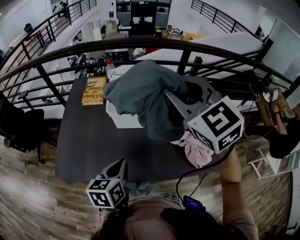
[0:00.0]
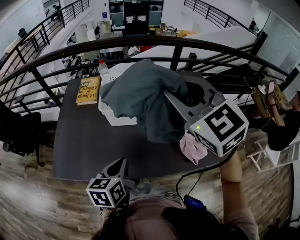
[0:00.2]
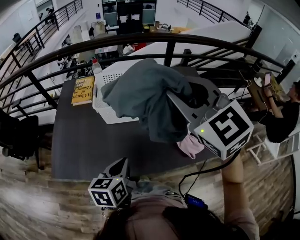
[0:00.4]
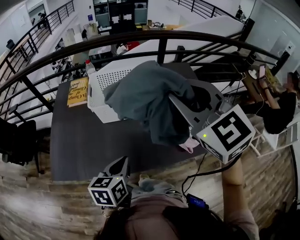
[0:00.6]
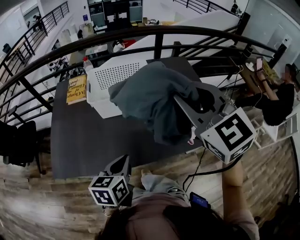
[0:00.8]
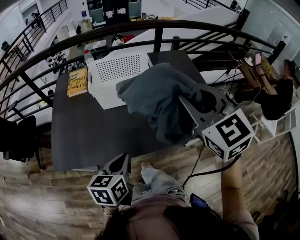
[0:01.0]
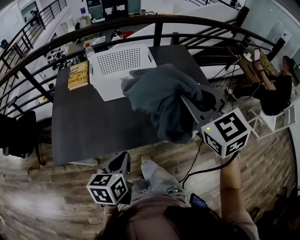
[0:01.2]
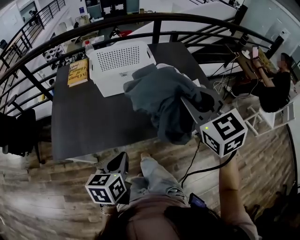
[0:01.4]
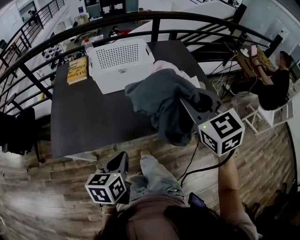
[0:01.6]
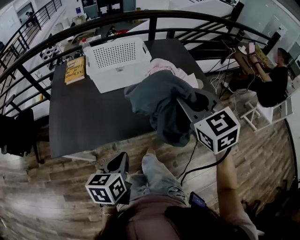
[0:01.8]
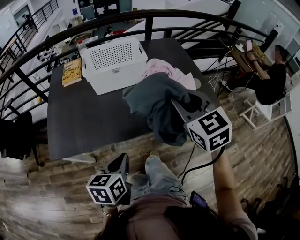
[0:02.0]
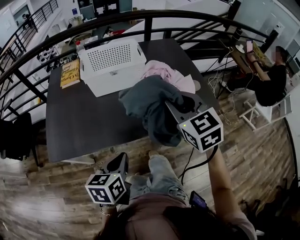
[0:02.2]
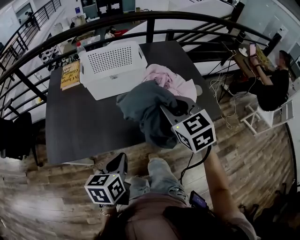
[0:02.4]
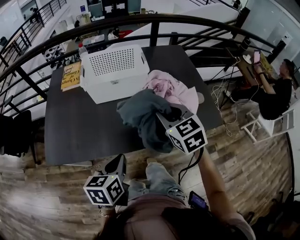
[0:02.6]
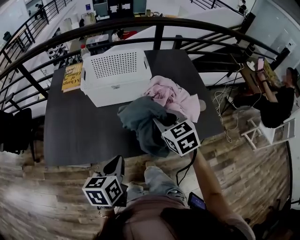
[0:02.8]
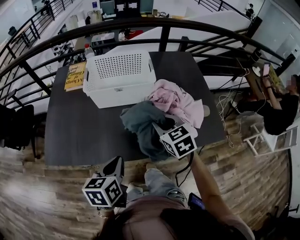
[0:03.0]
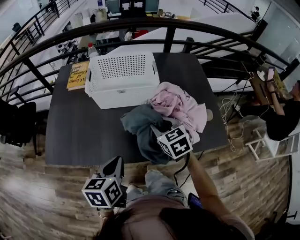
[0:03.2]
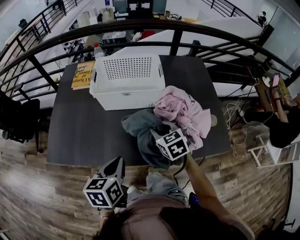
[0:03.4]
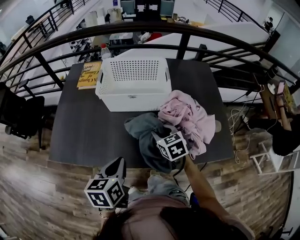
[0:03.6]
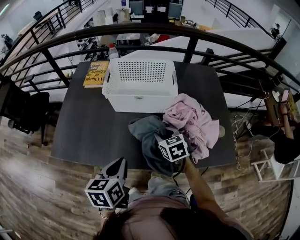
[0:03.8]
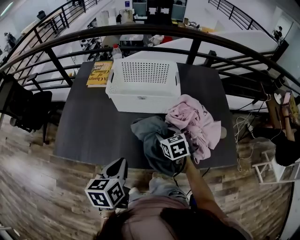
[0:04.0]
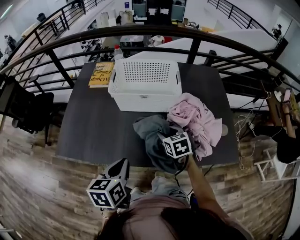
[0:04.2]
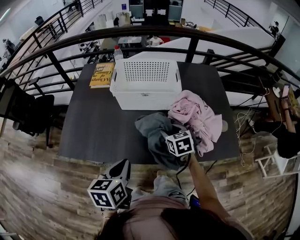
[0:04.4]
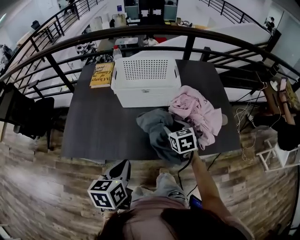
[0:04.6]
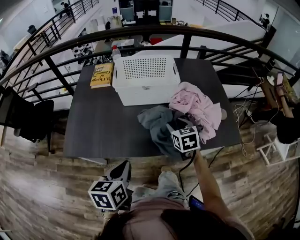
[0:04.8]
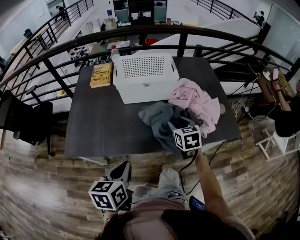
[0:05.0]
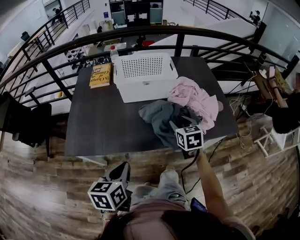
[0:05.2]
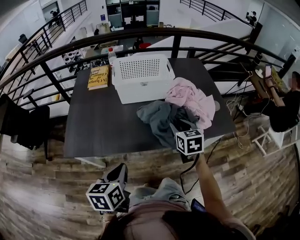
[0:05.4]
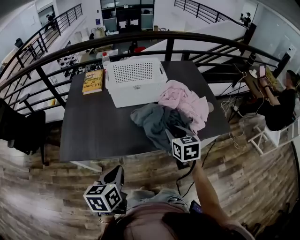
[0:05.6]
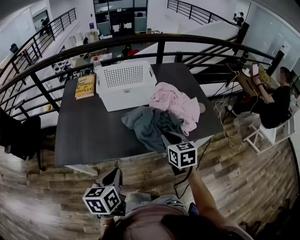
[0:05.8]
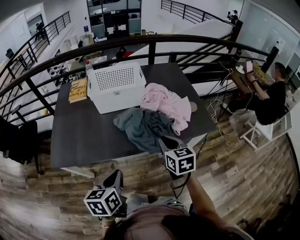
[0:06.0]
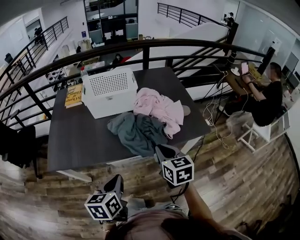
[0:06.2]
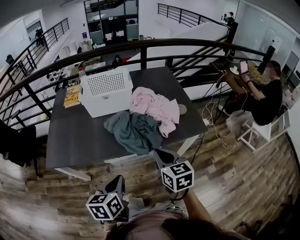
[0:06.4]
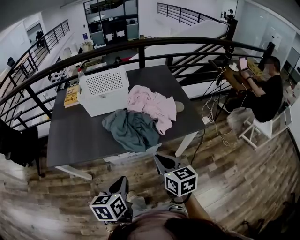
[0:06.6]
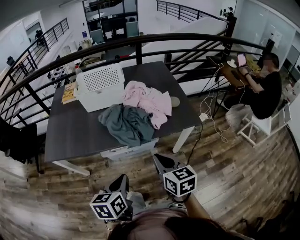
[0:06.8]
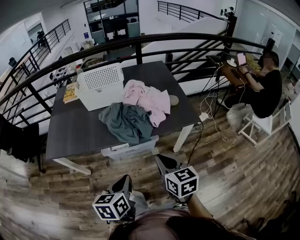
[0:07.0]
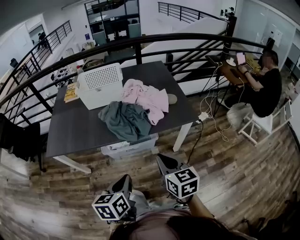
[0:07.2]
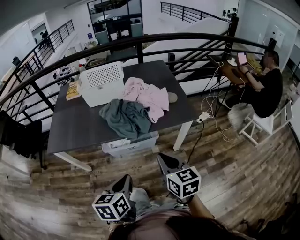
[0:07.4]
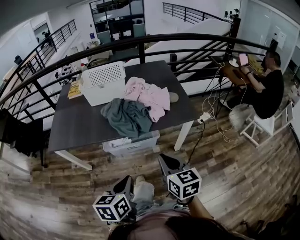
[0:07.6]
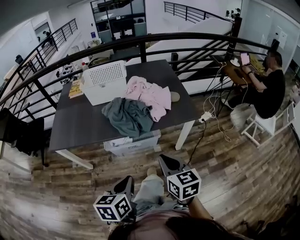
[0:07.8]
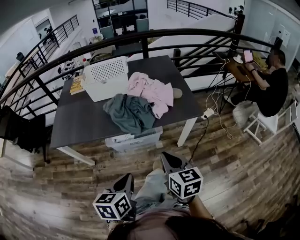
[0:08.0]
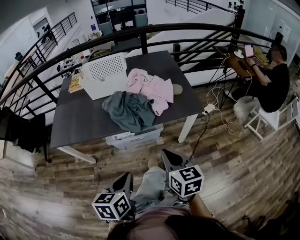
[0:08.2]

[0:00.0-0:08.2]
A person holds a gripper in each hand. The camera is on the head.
0:00.0 to 0:01.6: The right gripper moves backward, to the right and downward, about 25 cm, and swivels approximately 20 degrees. The left gripper shifts roughly 20 cm backward.
0:01.6 to 0:03.2: The right gripper is displaced downward and forward by roughly 25 cm, and changes its angle by approximately 20 degrees. Meanwhile the left gripper is displaced forward by approximately 10 cm.
0:03.2 to 0:05.0: The left gripper goes about 10 cm to the left and backward.
0:05.0 to 0:06.6: The right gripper heads backward and to the right, covering some 25 cm, and closes its fingers. The left gripper heads to the right and backward, covering about 20 cm.
0:06.6 to 0:08.2: The two grippers go some 10 cm backward and to the right.

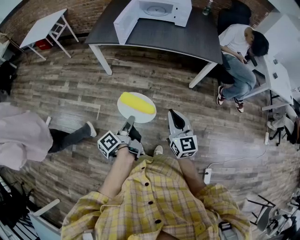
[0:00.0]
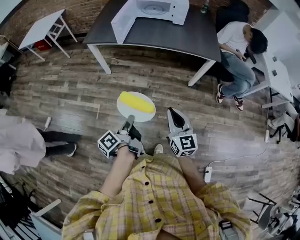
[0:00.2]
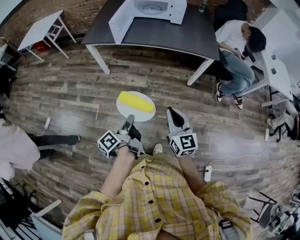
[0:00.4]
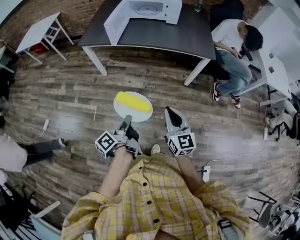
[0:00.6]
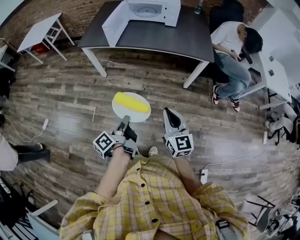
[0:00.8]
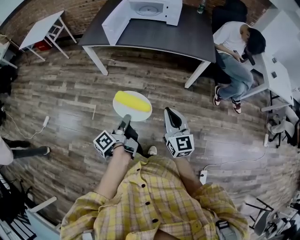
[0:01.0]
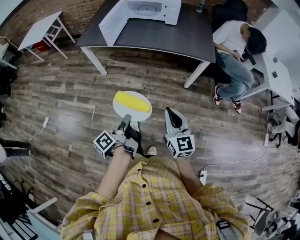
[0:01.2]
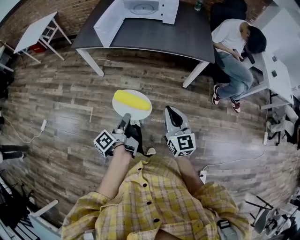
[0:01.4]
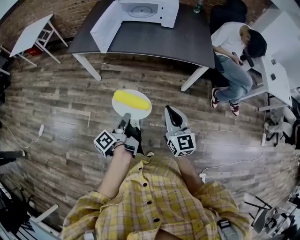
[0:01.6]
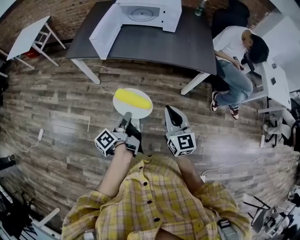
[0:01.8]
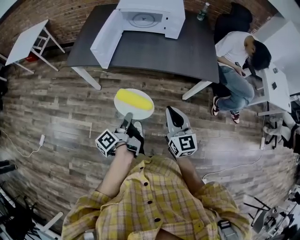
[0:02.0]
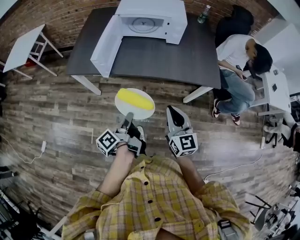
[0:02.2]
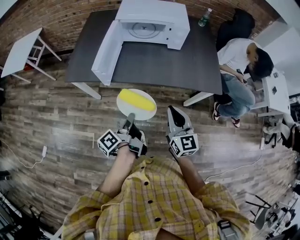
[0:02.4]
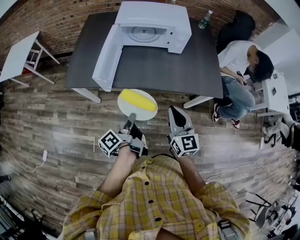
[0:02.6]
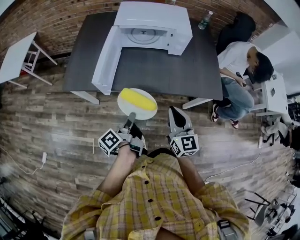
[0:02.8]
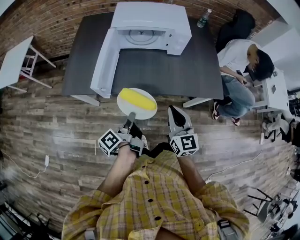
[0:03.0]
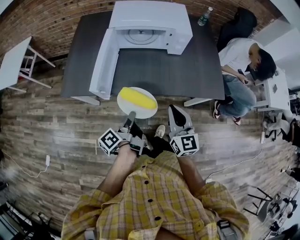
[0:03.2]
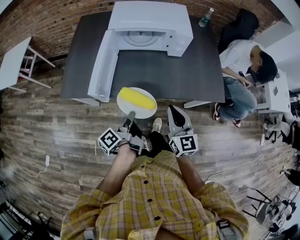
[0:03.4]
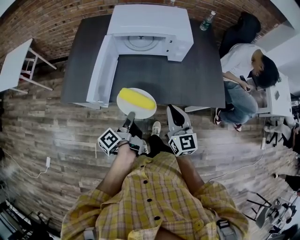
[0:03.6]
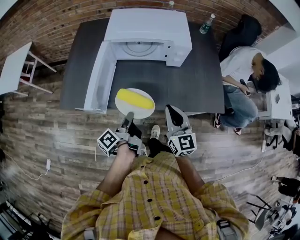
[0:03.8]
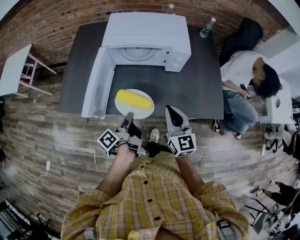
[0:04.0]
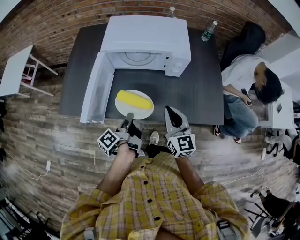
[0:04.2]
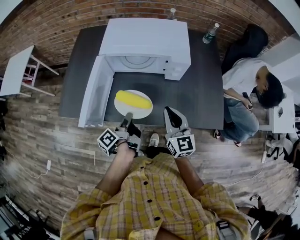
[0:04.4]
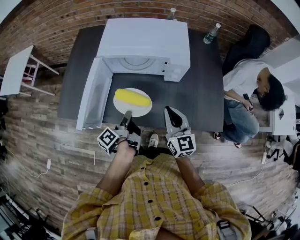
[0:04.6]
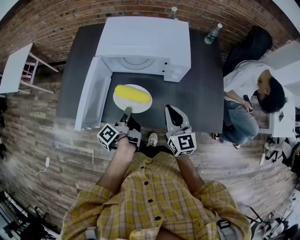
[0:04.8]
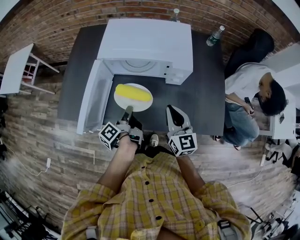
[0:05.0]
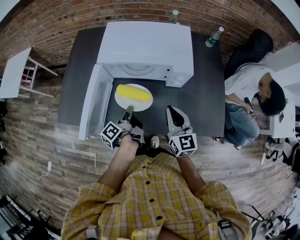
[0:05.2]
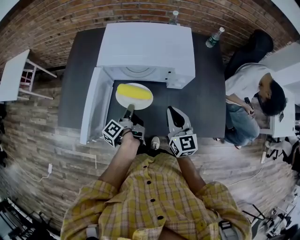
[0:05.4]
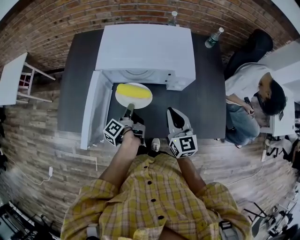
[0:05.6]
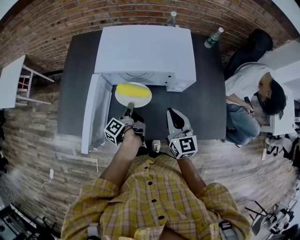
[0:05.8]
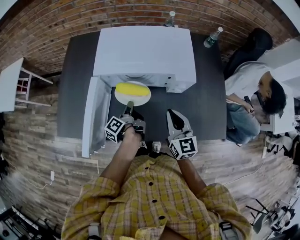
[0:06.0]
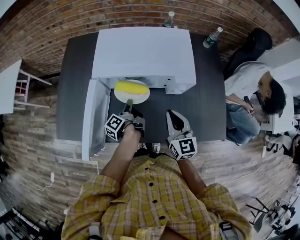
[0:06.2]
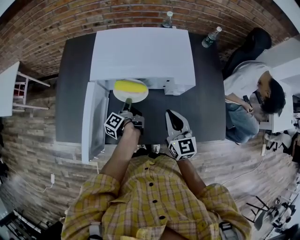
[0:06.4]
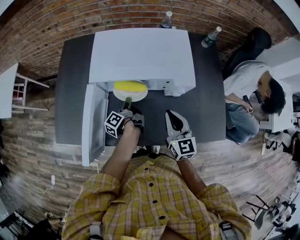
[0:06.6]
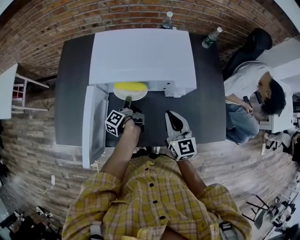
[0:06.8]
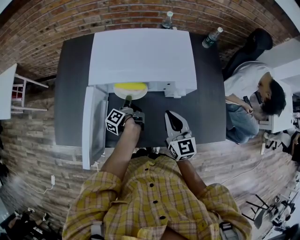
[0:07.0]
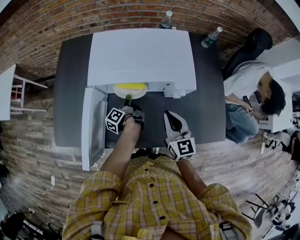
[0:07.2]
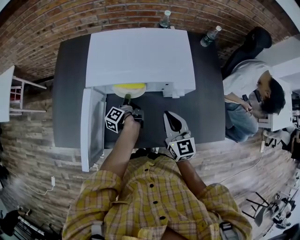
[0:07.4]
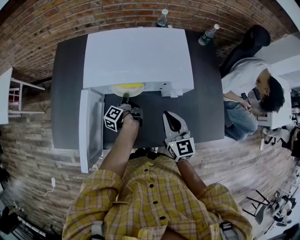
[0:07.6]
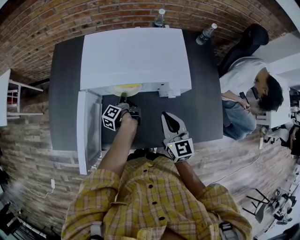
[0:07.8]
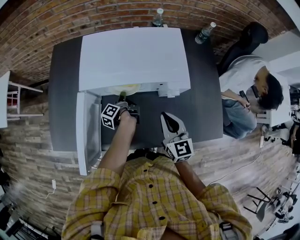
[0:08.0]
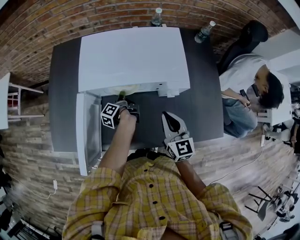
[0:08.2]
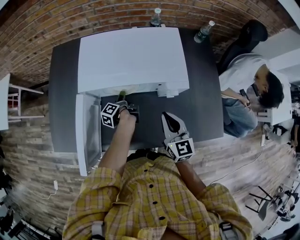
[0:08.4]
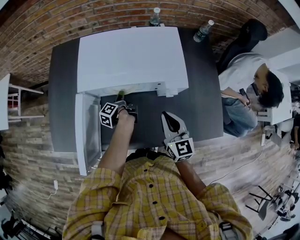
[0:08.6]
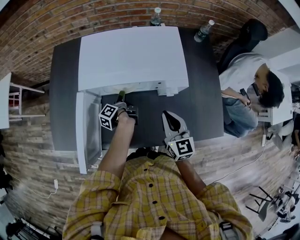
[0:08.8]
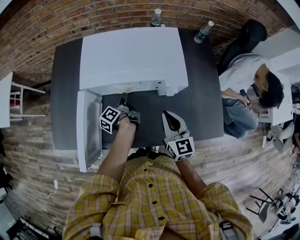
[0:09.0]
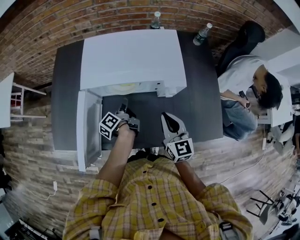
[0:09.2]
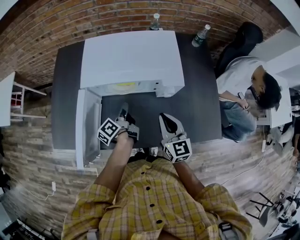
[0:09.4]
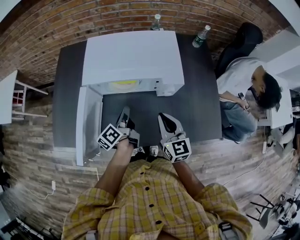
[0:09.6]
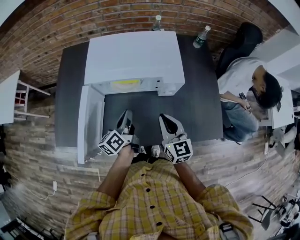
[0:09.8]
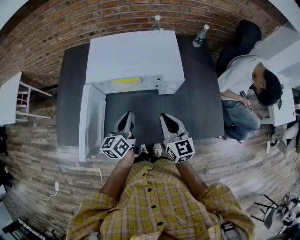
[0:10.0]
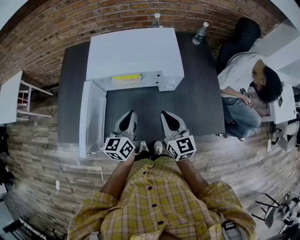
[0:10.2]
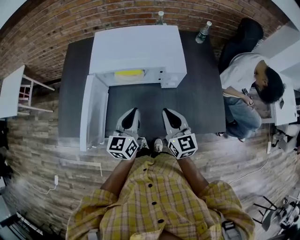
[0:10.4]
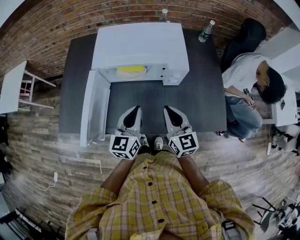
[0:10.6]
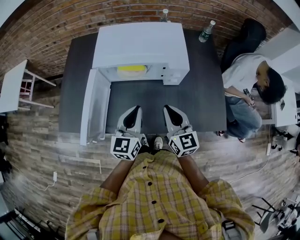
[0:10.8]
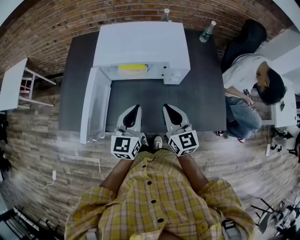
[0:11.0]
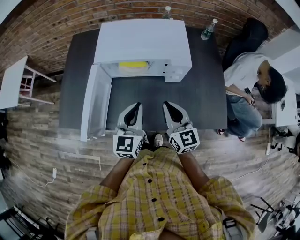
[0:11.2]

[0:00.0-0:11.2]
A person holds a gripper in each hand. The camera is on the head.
0:00.0 to 0:01.6: The right gripper shifts by about 15 cm.
0:01.6 to 0:03.2: The right gripper changes place by about 35 cm.
0:03.2 to 0:04.8: The right gripper shifts by approximately 20 cm.
0:04.8 to 0:06.4: The right gripper moves roughly 10 cm.
0:09.6 to 0:11.2: The right gripper moves roughly 5 cm.

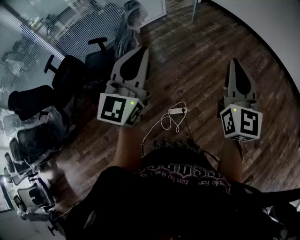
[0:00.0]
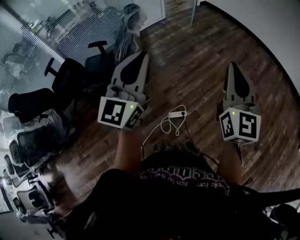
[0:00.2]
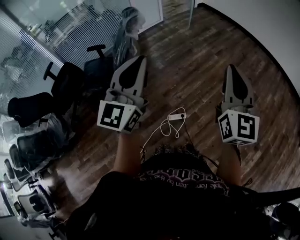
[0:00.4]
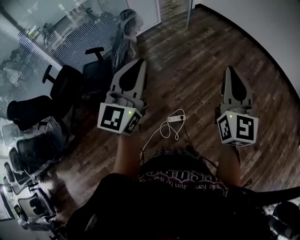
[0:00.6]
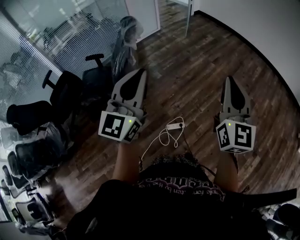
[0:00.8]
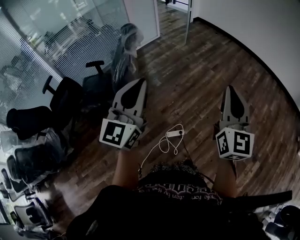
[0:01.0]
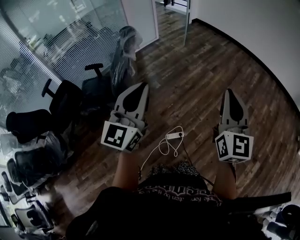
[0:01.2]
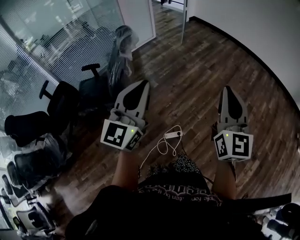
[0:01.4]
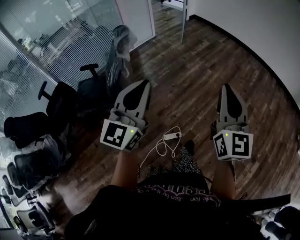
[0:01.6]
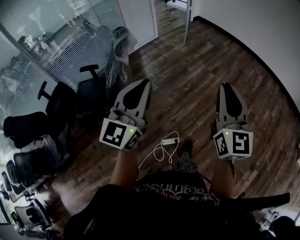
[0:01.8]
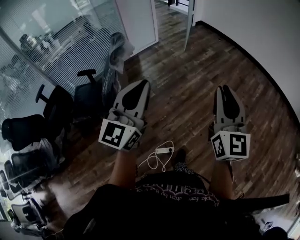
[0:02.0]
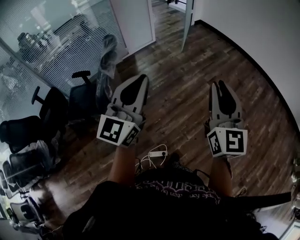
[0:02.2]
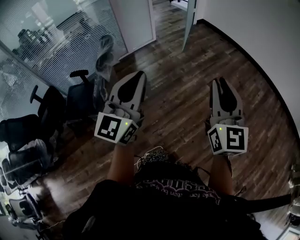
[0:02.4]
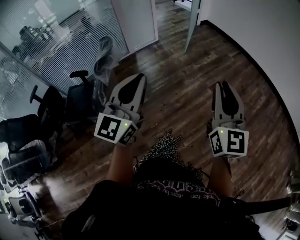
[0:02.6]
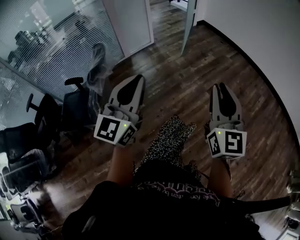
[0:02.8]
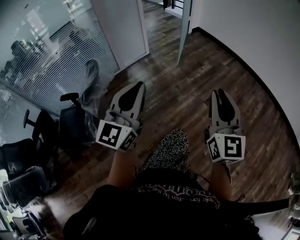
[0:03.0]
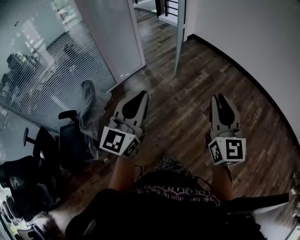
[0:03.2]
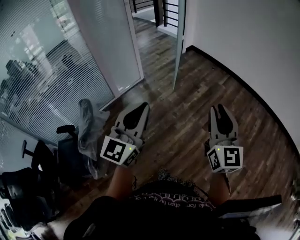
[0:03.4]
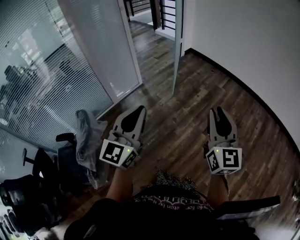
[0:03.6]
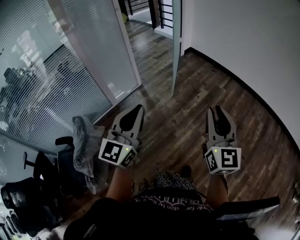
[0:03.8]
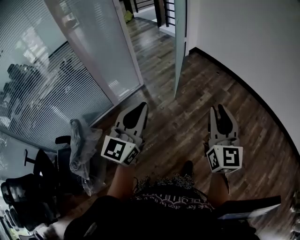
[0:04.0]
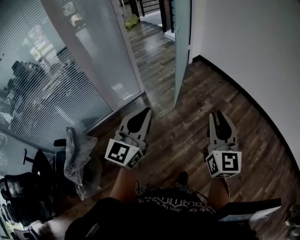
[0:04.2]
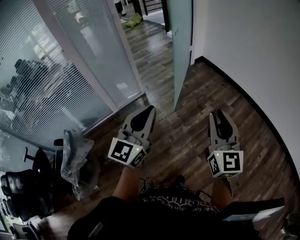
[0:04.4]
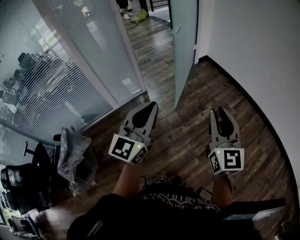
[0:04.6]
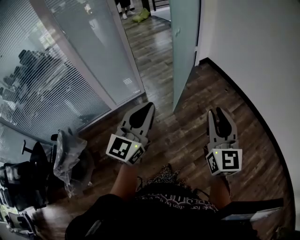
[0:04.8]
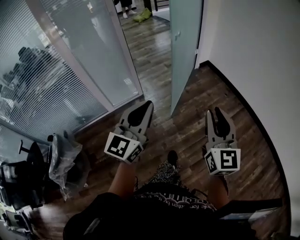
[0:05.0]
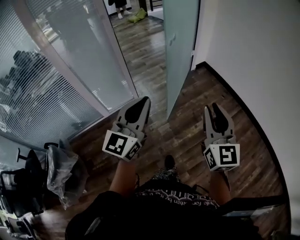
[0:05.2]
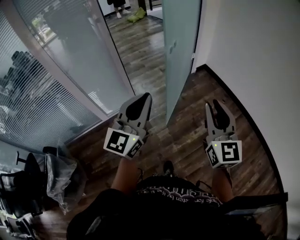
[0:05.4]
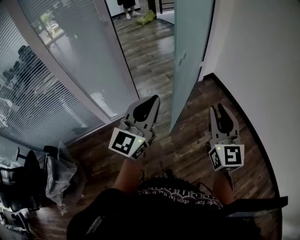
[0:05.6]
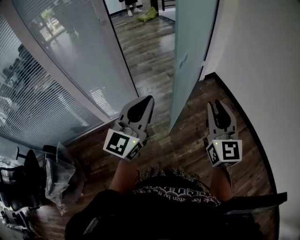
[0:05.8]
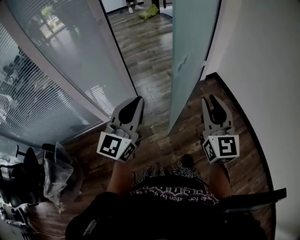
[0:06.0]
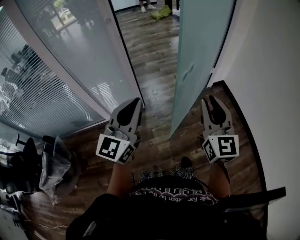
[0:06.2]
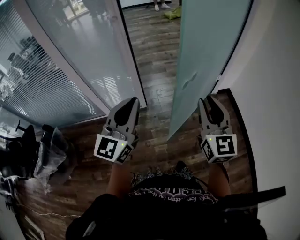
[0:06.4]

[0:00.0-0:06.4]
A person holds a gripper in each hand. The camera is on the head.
0:00.0 to 0:01.6: The two grippers go some 5 cm forward.
0:01.6 to 0:03.2: The two grippers travel together, forward, about 60 cm.
0:03.2 to 0:04.8: Both grippers are carried forward, about 50 cm.
0:04.8 to 0:06.4: Both grippers travel together forward, about 40 cm. The left gripper changes its angle by roughly 20 degrees. The right gripper swivels roughly 20 degrees.
